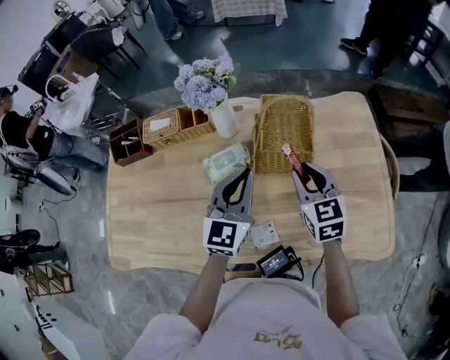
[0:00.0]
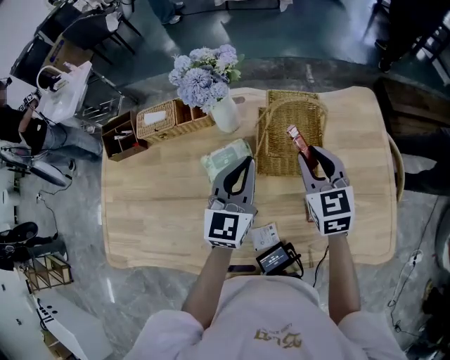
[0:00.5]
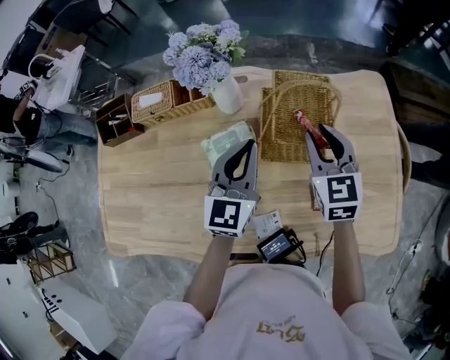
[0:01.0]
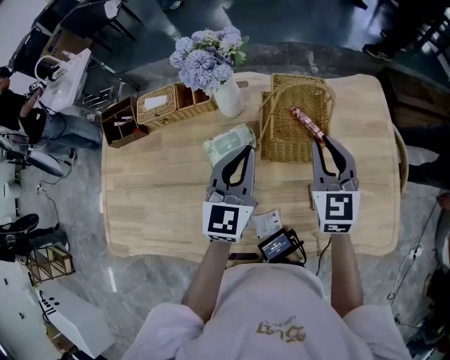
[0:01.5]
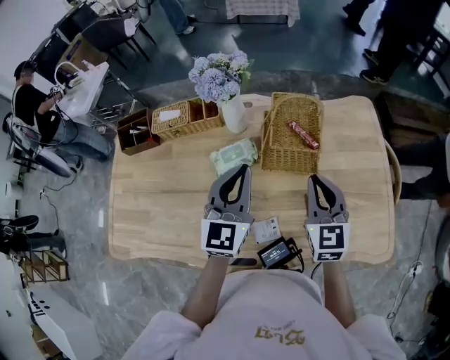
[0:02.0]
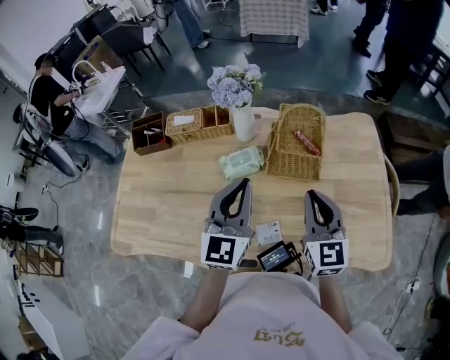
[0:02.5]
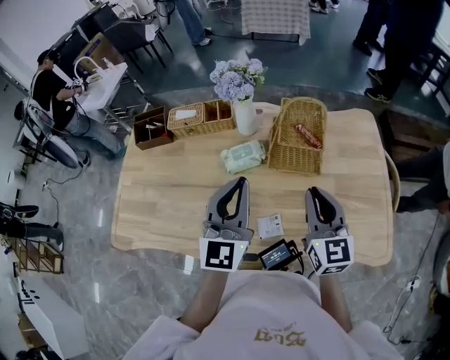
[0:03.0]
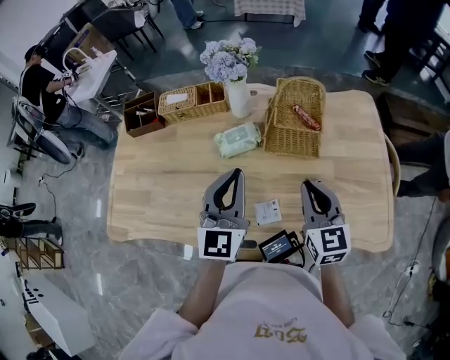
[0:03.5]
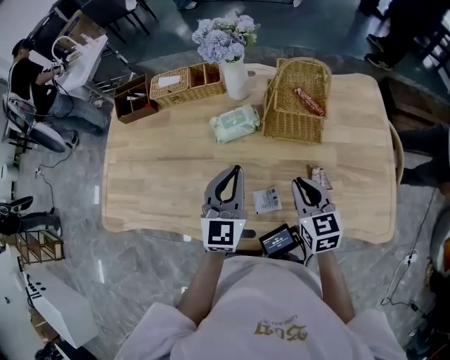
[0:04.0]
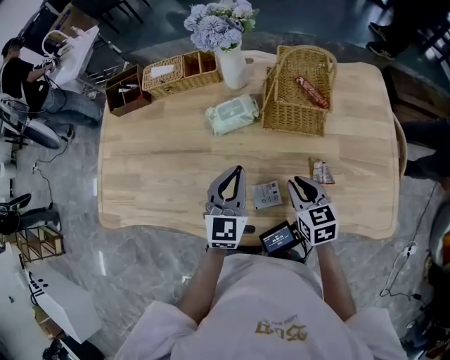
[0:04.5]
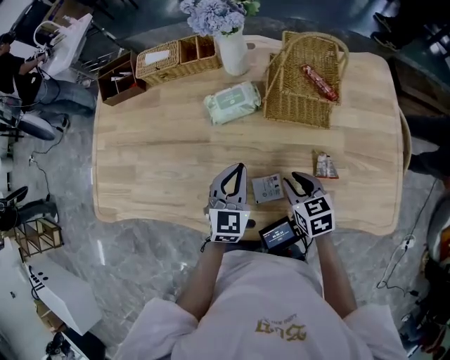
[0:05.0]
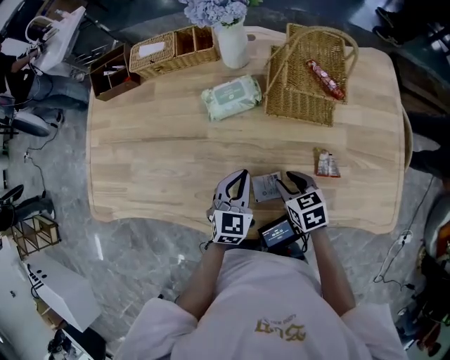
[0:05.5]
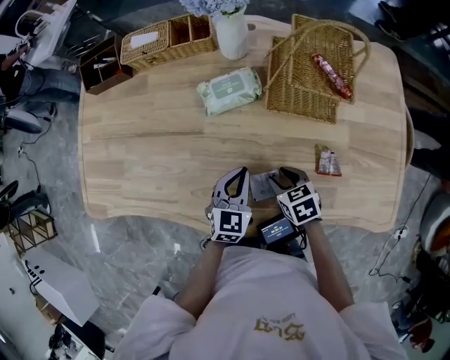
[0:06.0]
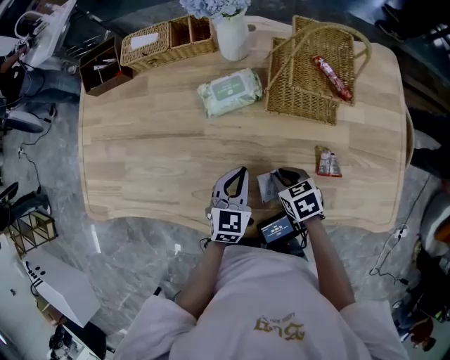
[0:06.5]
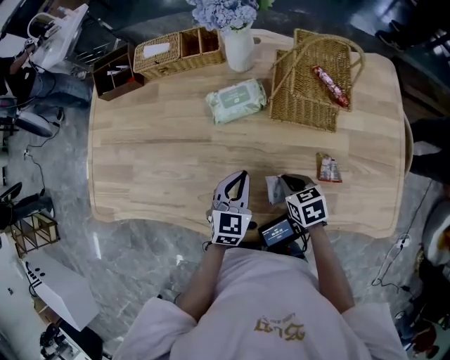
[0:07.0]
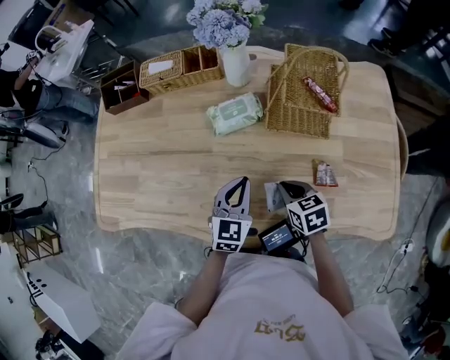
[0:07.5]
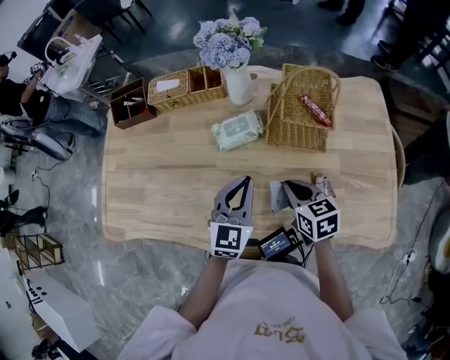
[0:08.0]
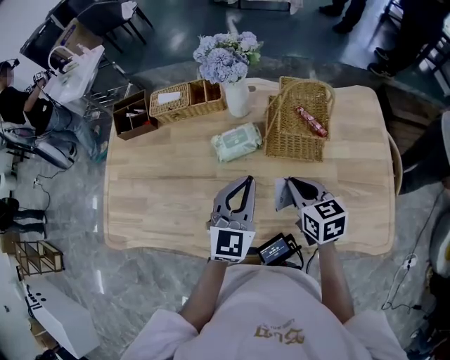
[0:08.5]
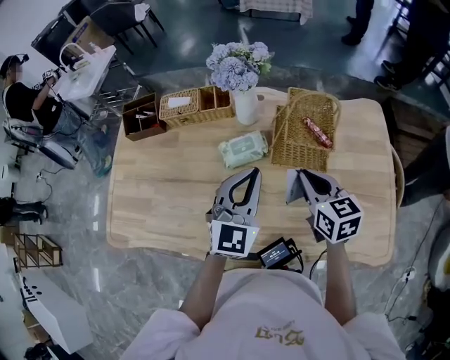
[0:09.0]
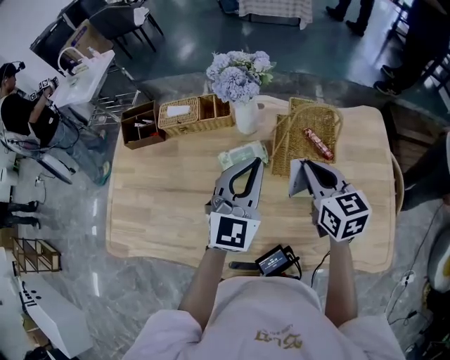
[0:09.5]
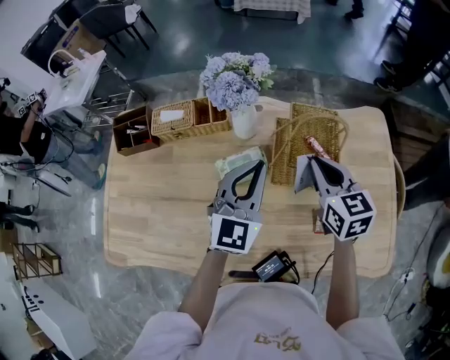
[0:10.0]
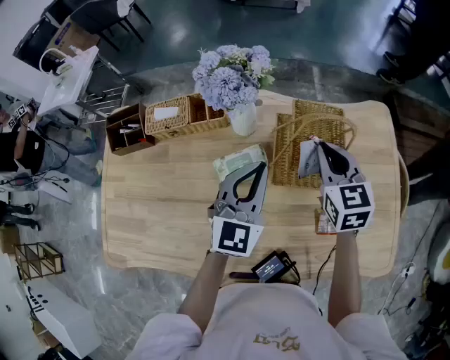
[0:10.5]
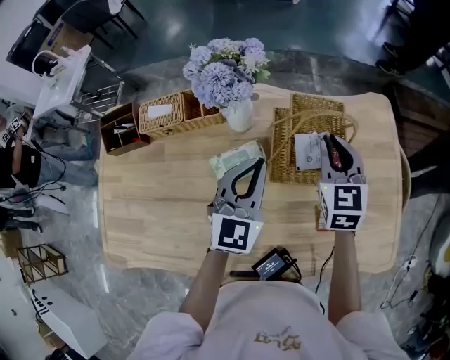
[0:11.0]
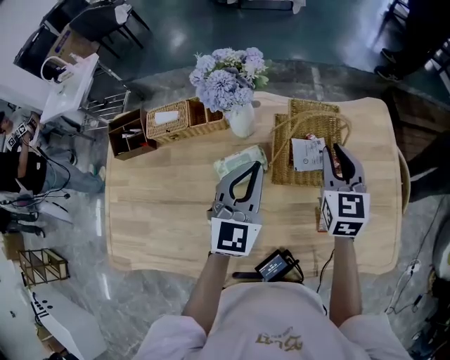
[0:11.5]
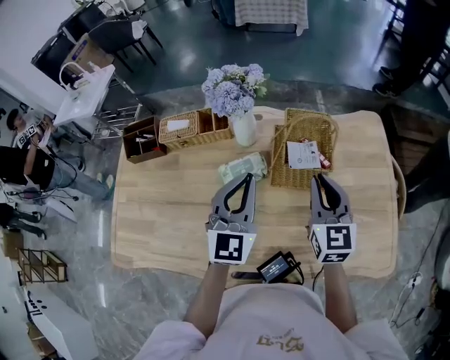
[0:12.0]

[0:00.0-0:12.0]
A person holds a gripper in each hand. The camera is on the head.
0:00.0 to 0:02.0: The left gripper moves about 5 cm forward and comes back. The right gripper travels forward and back again, some 10 cm each way, and closes its fingers.
0:02.0 to 0:04.0: The left gripper heads backward and downward, covering some 10 cm; the right gripper goes roughly 10 cm downward and backward, and turns by about 20 degrees.
0:04.0 to 0:06.0: The grippers both shift downward by some 20 cm. The right gripper turns by some 30 degrees, and opens up. The left gripper rotates roughly 20 degrees.
0:06.0 to 0:08.0: Both grippers move upward, some 15 cm. The right gripper turns by about 20 degrees, and closes its fingers.
0:08.0 to 0:10.0: The grippers both shift forward and upward by about 20 cm. The right gripper turns by some 20 degrees.
0:10.0 to 0:12.0: The right gripper goes approximately 5 cm backward.

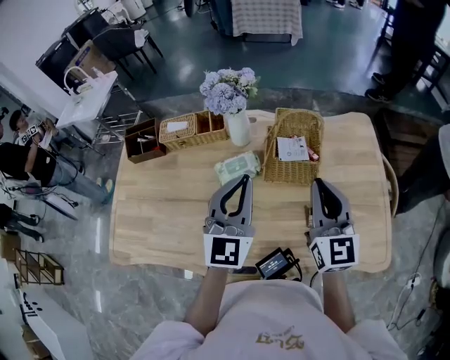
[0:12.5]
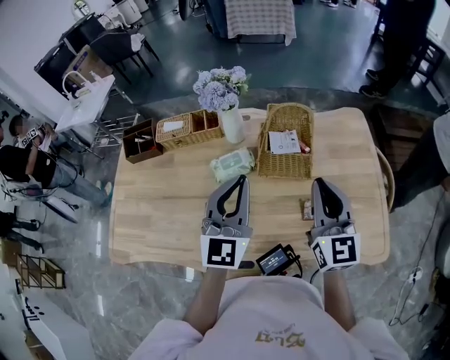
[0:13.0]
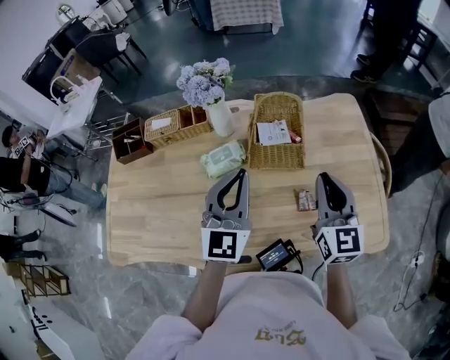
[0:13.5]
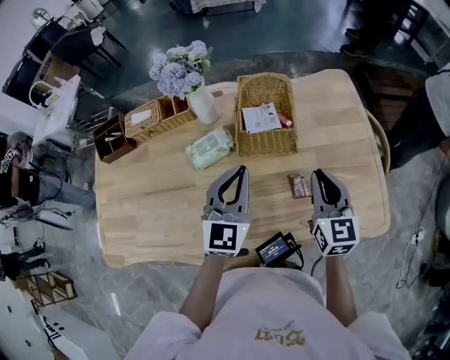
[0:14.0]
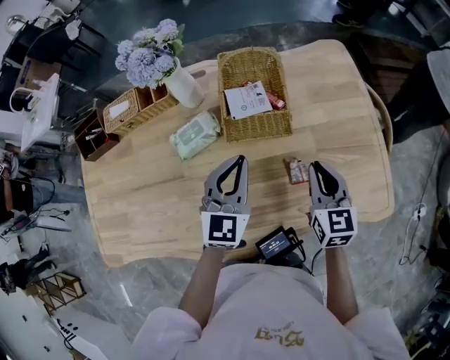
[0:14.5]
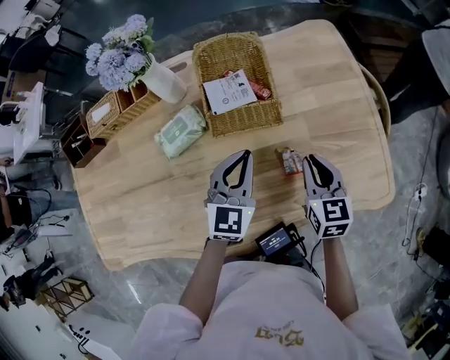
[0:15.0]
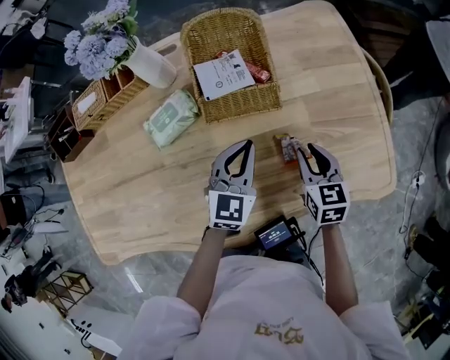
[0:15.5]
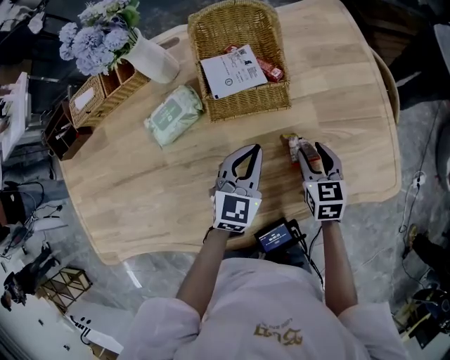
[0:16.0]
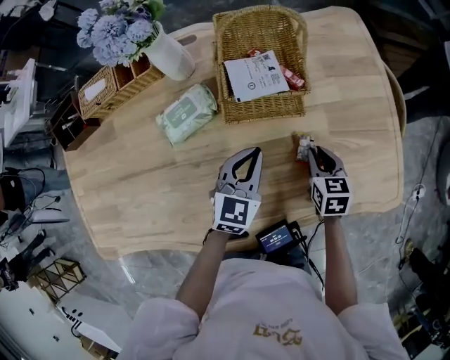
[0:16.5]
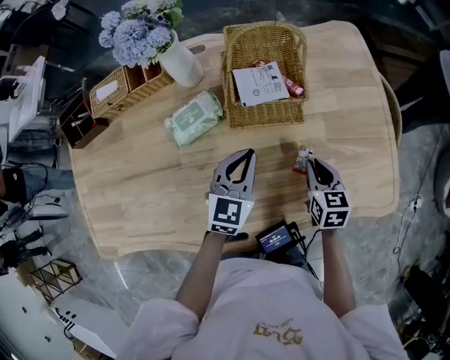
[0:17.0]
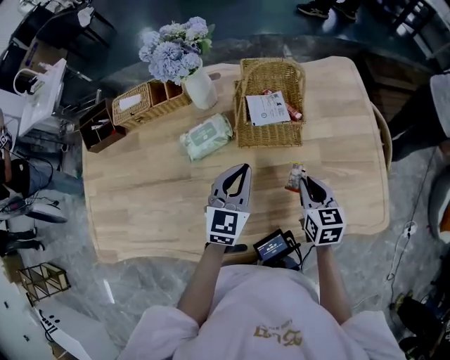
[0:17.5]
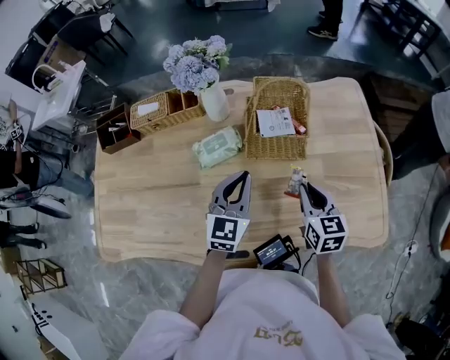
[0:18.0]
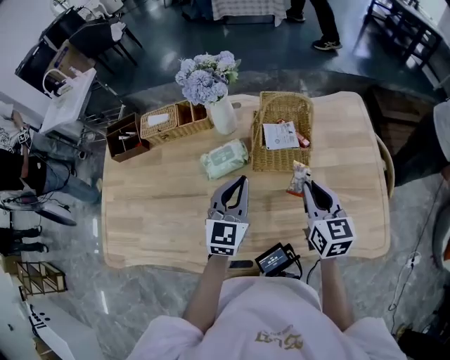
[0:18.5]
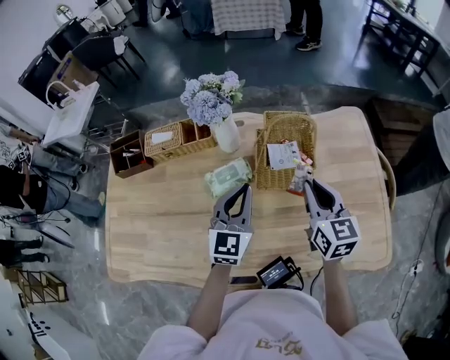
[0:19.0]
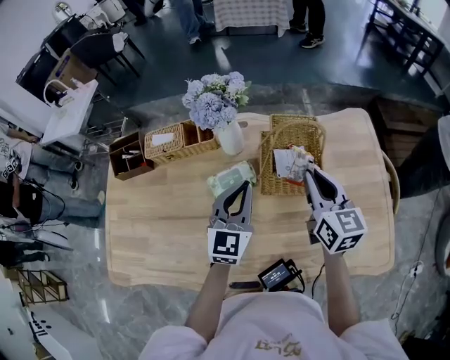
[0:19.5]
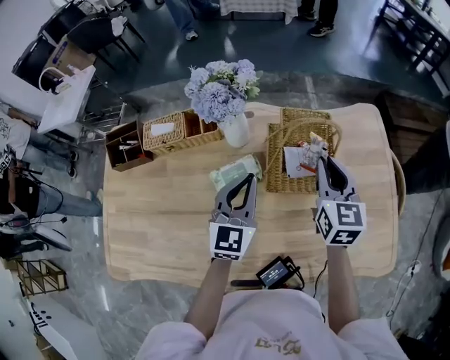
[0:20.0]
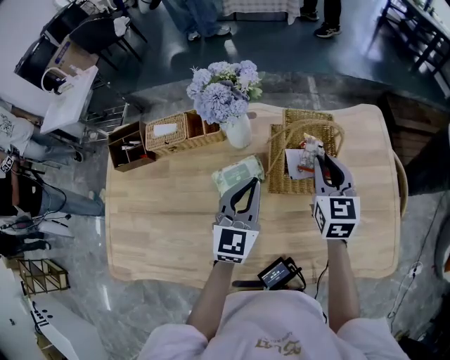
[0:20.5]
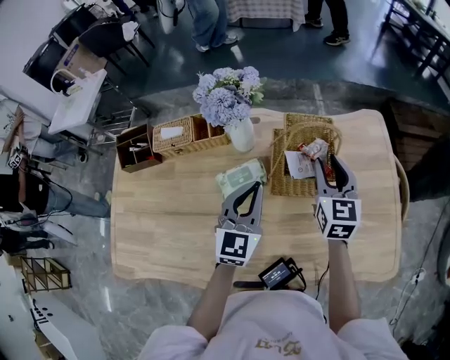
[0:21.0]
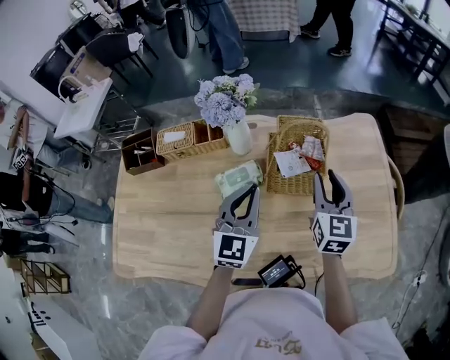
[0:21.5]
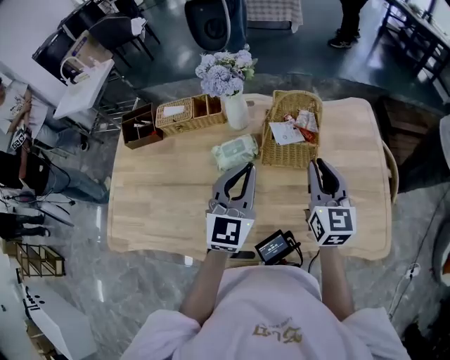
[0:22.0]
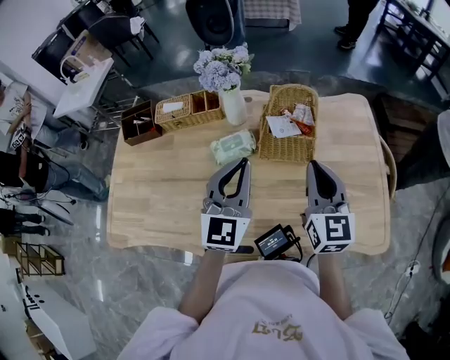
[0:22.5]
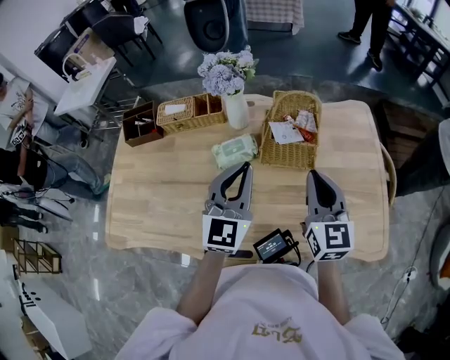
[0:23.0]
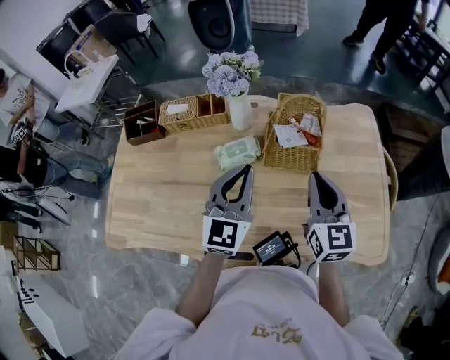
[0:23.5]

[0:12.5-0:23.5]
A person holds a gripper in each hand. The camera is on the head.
0:12.5 to 0:14.5: The grippers both shift downward and to the right by approximately 20 cm. The right gripper changes its angle by roughly 30 degrees.
0:14.5 to 0:16.0: Both grippers move downward, approximately 15 cm. The right gripper opens its fingers.
0:16.0 to 0:18.0: Both grippers move upward and to the left, approximately 15 cm. The right gripper closes up.
0:18.0 to 0:20.0: The right gripper moves forward and upward, about 20 cm. The left gripper moves forward and to the left, about 10 cm.
0:20.0 to 0:21.5: The left gripper moves roughly 5 cm. Meanwhile the right gripper ends up roughly 5 cm from where it was.
0:21.5 to 0:23.5: The right gripper shifts roughly 10 cm backward, and closes; the left gripper shifts approximately 5 cm backward.

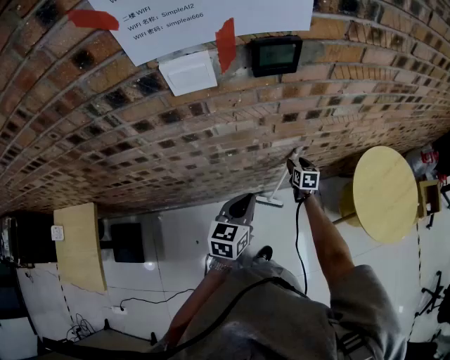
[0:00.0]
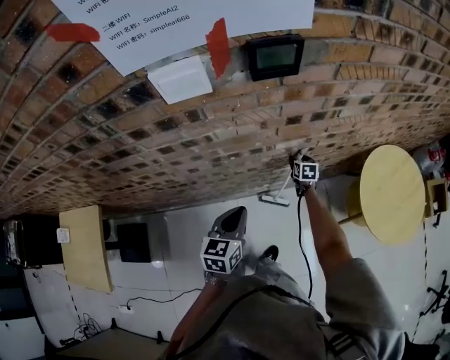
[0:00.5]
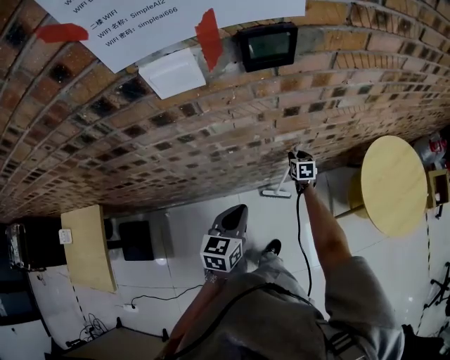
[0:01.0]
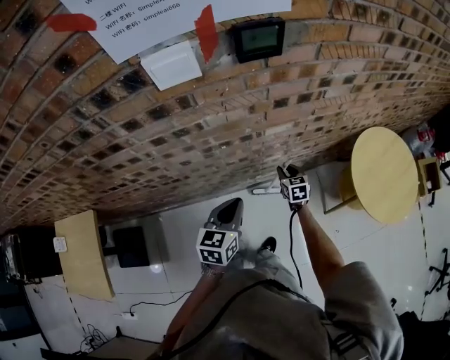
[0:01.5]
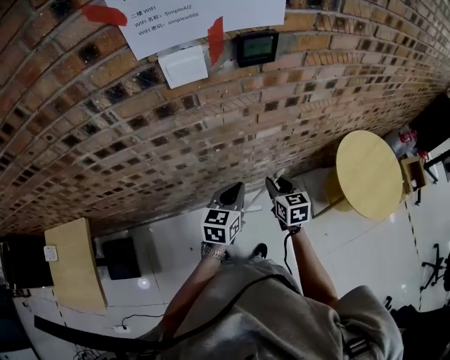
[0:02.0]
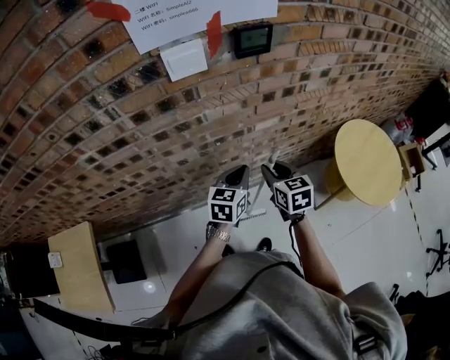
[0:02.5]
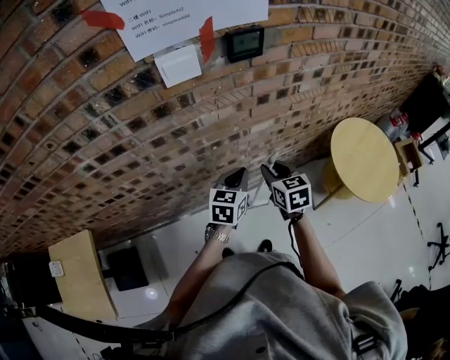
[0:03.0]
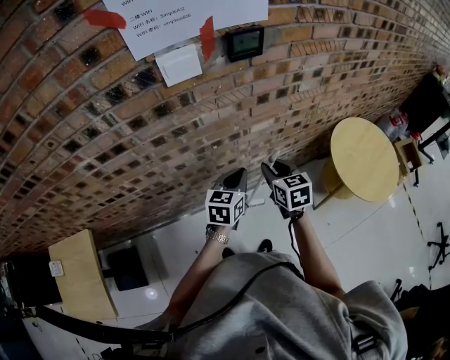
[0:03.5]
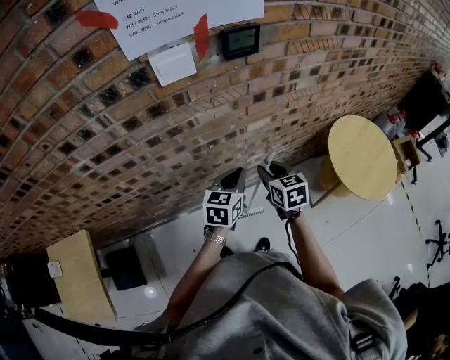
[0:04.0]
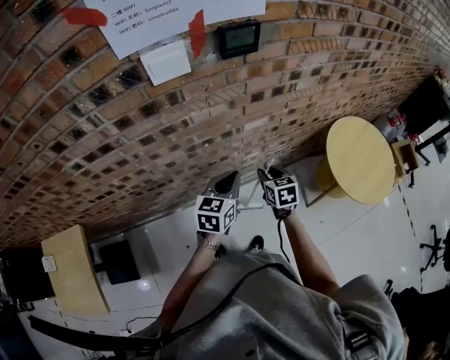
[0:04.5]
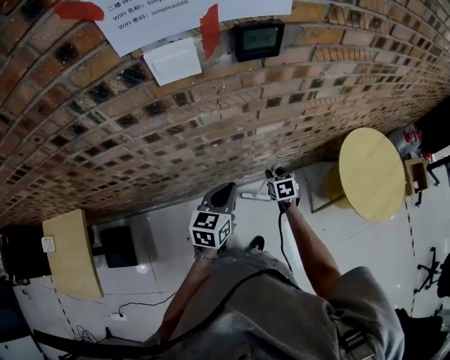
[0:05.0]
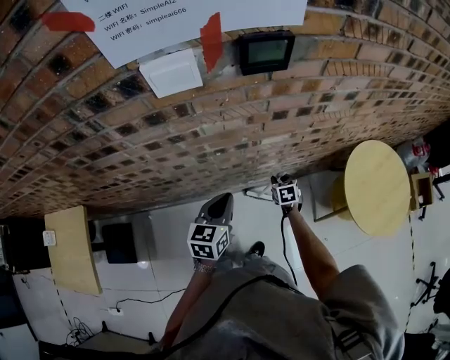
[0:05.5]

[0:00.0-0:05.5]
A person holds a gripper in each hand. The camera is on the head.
0:00.0 to 0:02.0: The right gripper travels backward, upward and to the left by some 25 cm, and closes up.
0:02.0 to 0:03.5: The right gripper heads upward, covering approximately 5 cm.
0:03.5 to 0:05.5: The right gripper heads downward and forward, covering roughly 30 cm, and swivels roughly 20 degrees.
